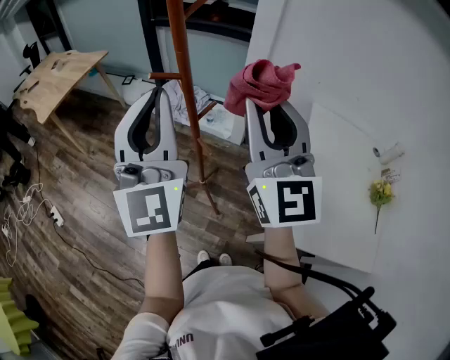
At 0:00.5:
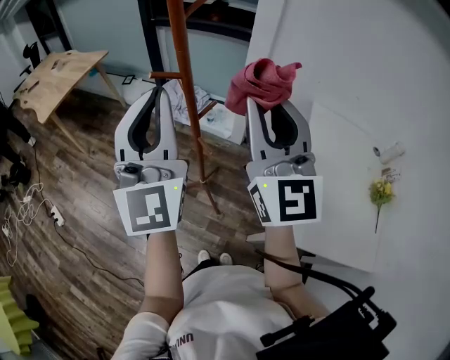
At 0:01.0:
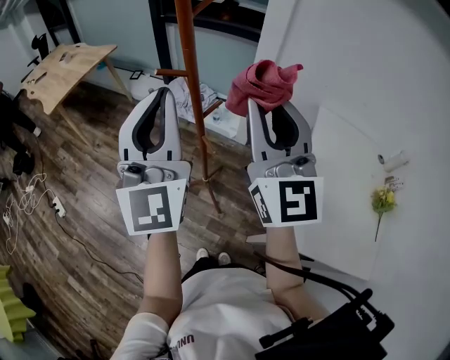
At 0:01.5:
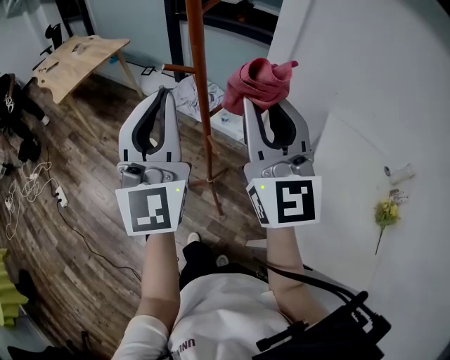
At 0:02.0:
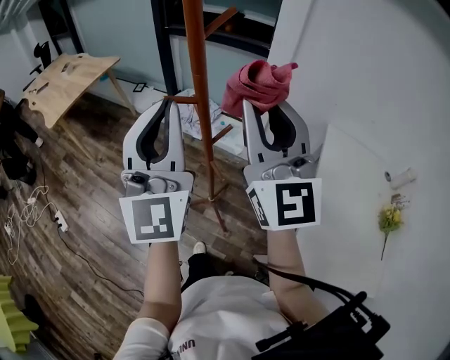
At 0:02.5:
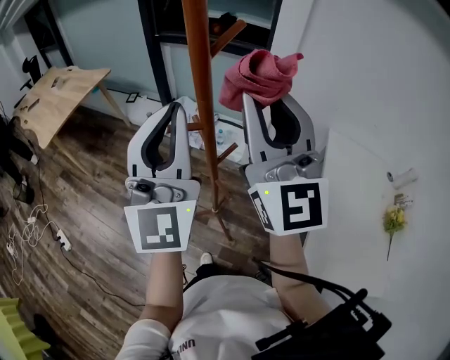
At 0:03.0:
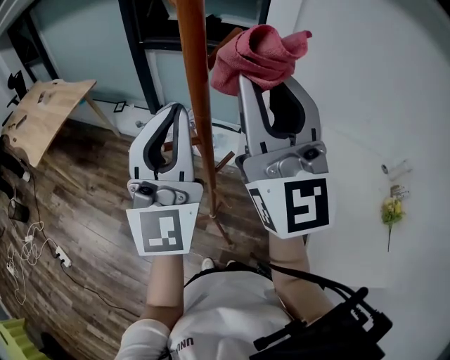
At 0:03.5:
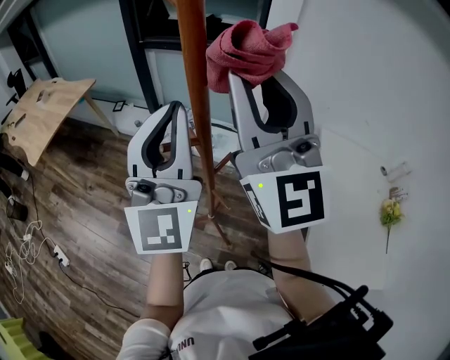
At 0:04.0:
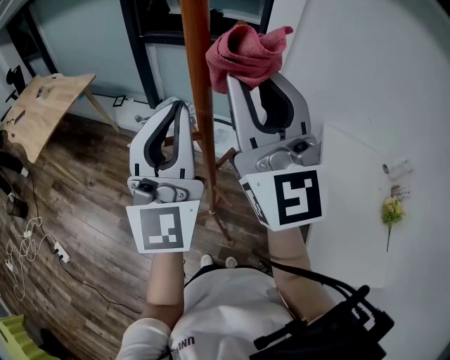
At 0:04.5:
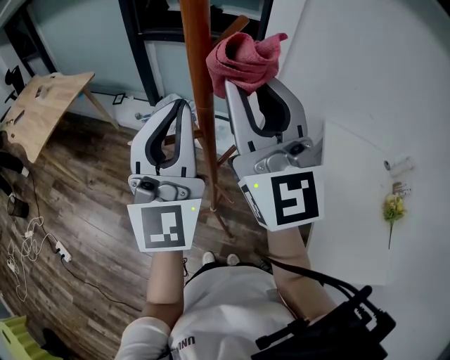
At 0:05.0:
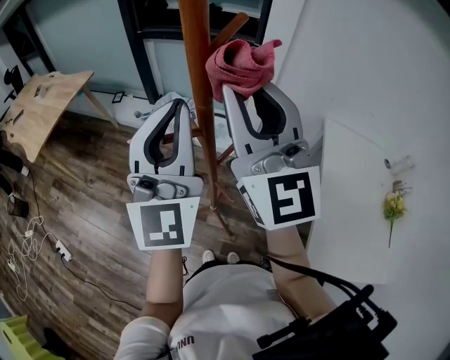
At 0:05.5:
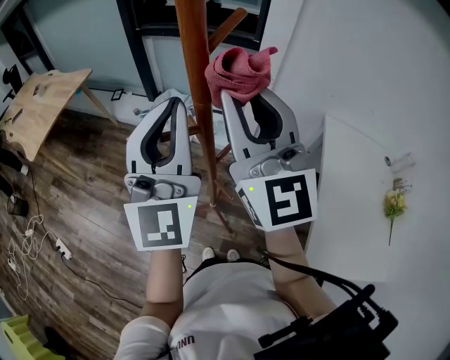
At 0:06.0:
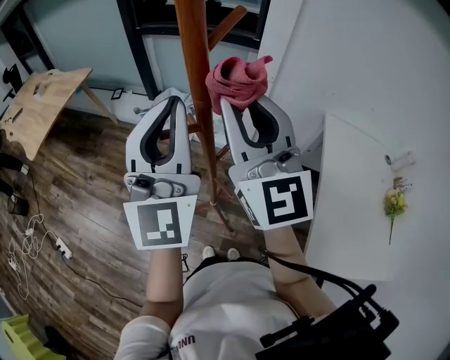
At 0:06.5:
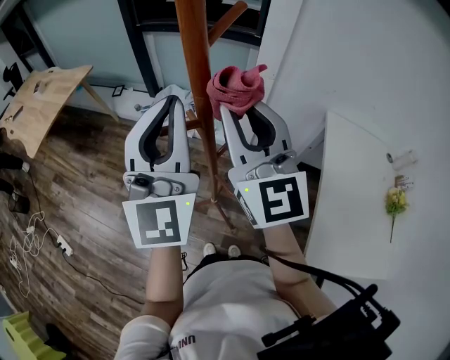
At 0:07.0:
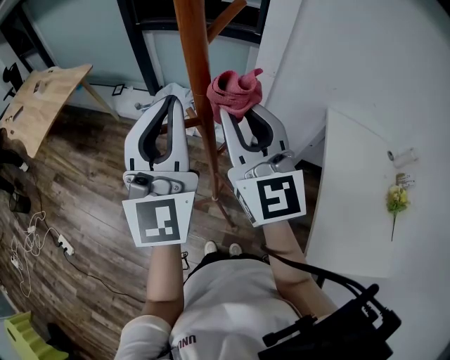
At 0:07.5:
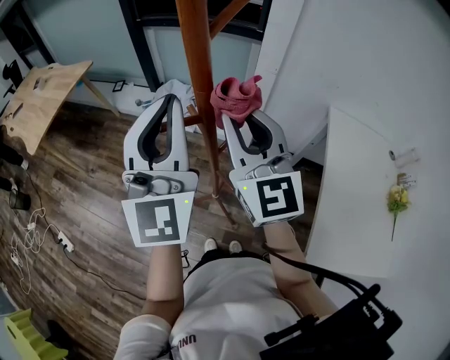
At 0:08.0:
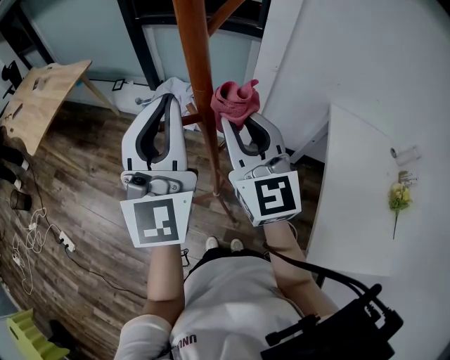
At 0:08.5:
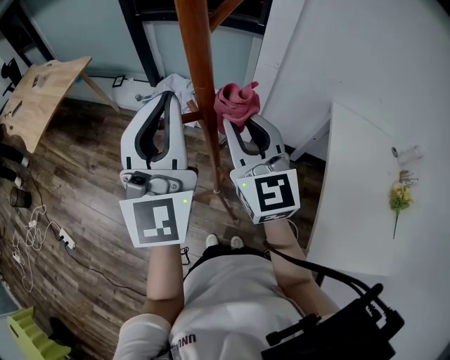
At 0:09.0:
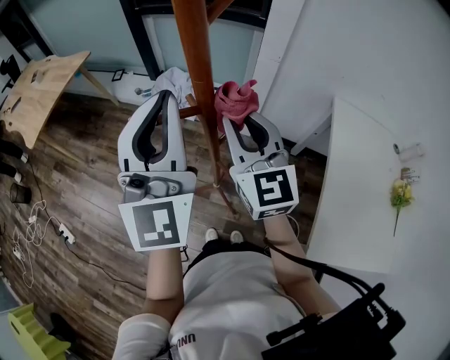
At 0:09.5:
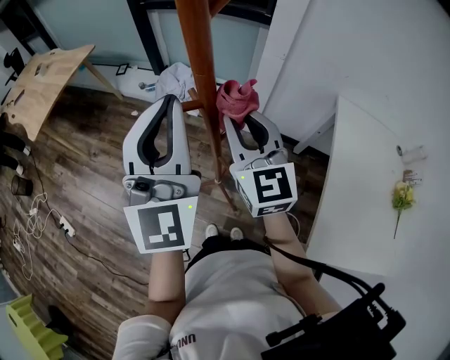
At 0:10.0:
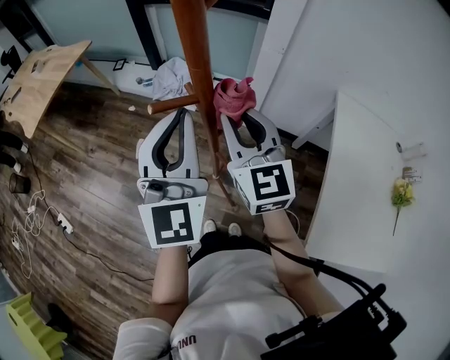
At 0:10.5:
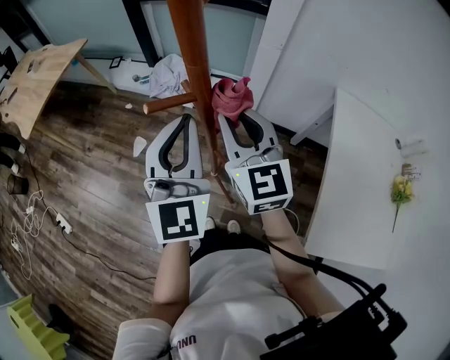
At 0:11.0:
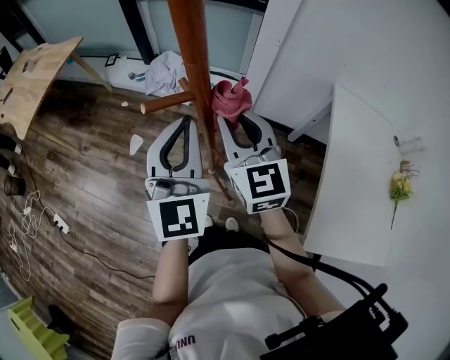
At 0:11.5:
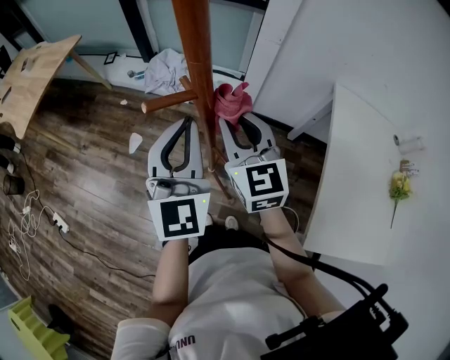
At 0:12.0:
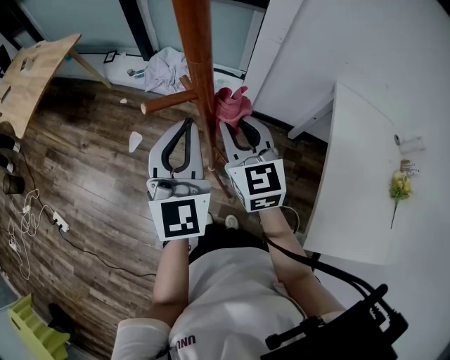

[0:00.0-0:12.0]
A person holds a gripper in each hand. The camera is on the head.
0:00.0 to 0:02.0: The two grippers go approximately 5 cm forward.
0:02.0 to 0:04.0: The left gripper moves forward, about 10 cm; the right gripper goes some 10 cm forward and upward.
0:04.0 to 0:06.0: The right gripper shifts some 5 cm downward.
0:06.0 to 0:08.0: The right gripper shifts roughly 10 cm downward.
0:08.0 to 0:10.0: Both grippers travel together downward, roughly 5 cm.
0:10.0 to 0:12.0: The grippers both shift downward by approximately 5 cm.

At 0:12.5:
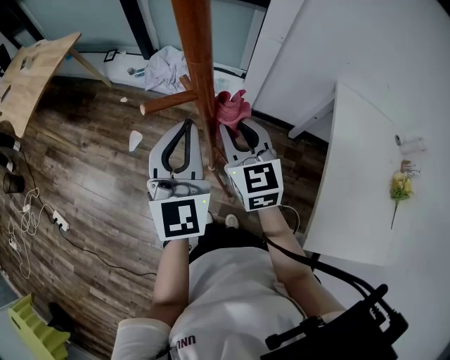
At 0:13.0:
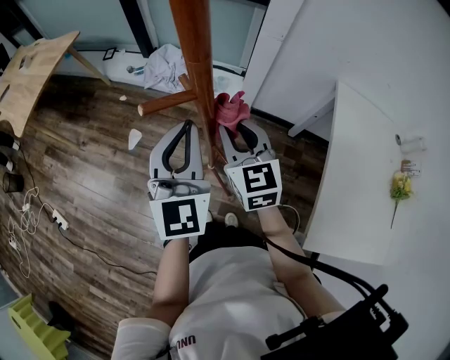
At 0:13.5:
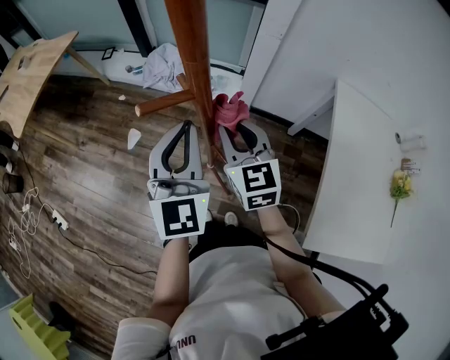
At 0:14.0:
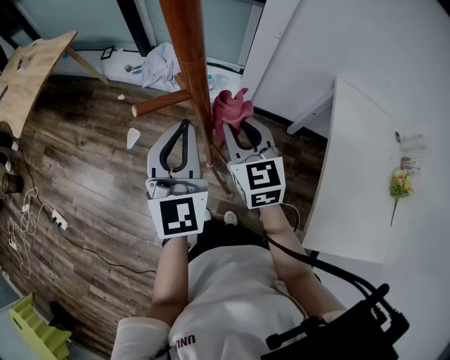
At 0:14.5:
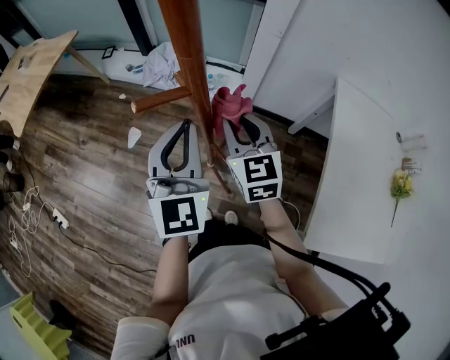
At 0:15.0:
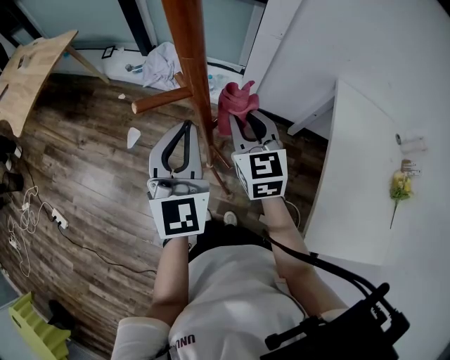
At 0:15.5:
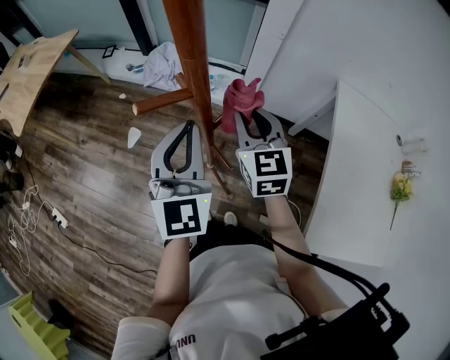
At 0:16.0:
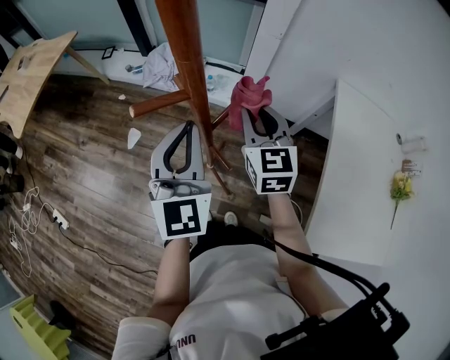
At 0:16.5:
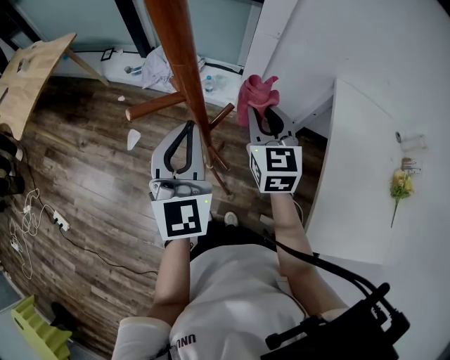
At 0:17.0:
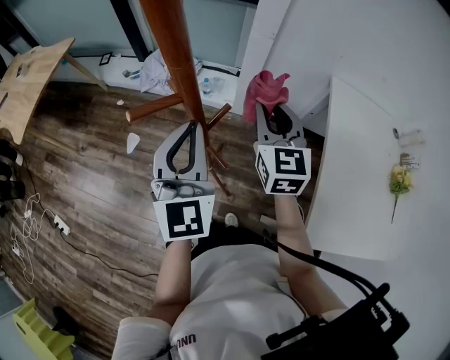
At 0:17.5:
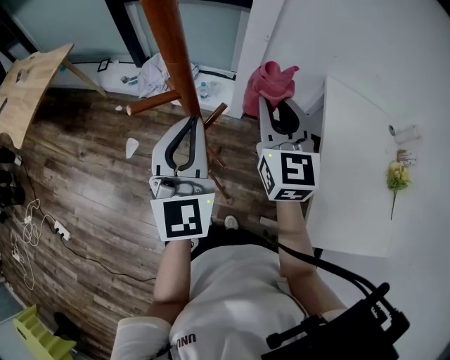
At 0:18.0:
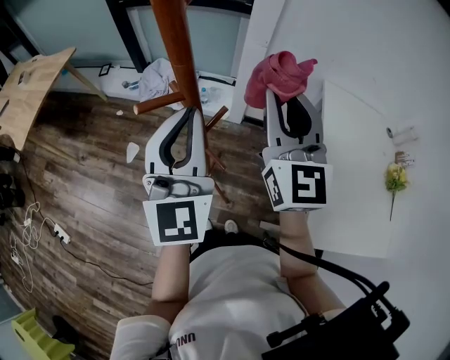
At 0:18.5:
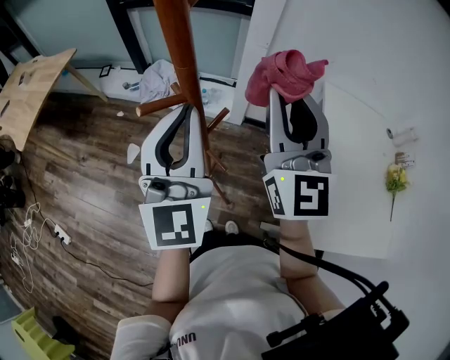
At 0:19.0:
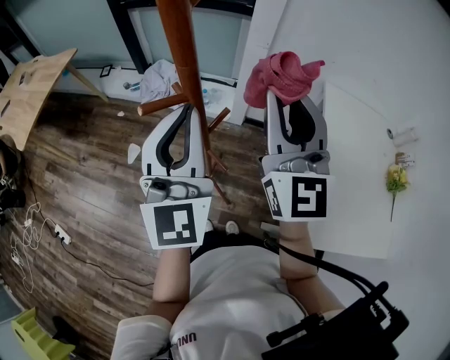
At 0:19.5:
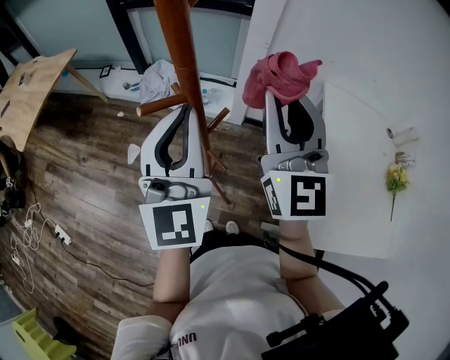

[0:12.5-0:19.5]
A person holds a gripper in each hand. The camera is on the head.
0:12.5 to 0:14.5: The grippers stay close to where they were, moving slightly.
0:14.5 to 0:16.0: The right gripper changes place by about 5 cm.
0:16.0 to 0:17.5: The right gripper shifts roughly 10 cm upward.
0:17.5 to 0:19.5: The left gripper shifts by approximately 5 cm, while the right gripper shifts about 10 cm upward.

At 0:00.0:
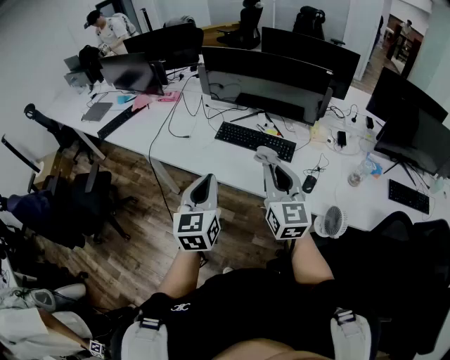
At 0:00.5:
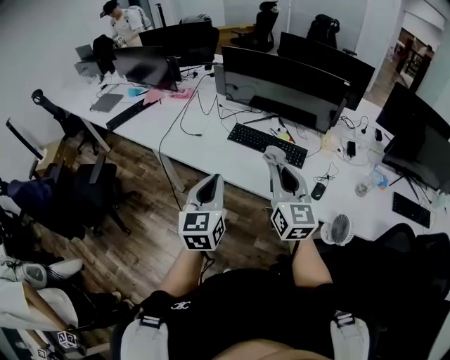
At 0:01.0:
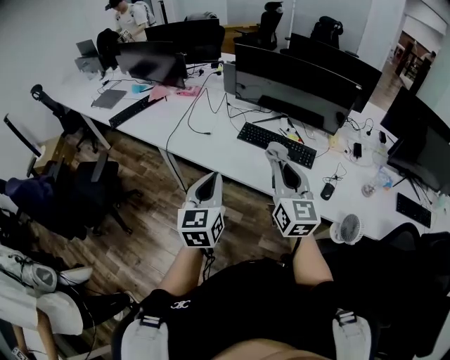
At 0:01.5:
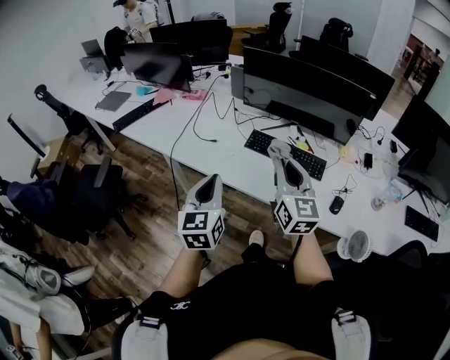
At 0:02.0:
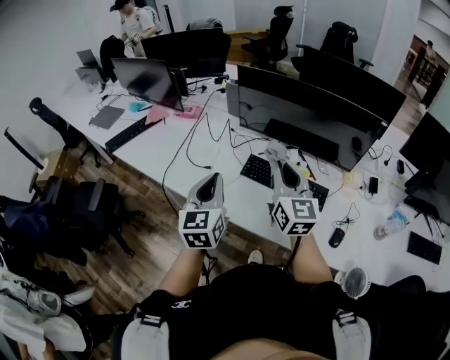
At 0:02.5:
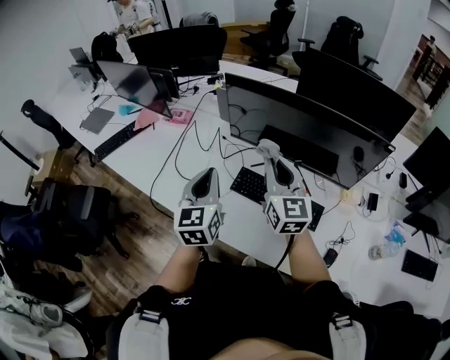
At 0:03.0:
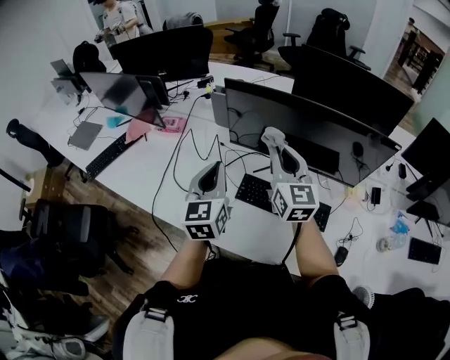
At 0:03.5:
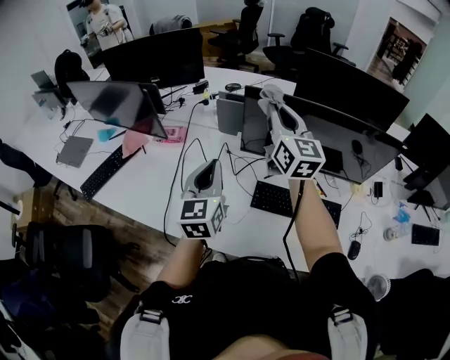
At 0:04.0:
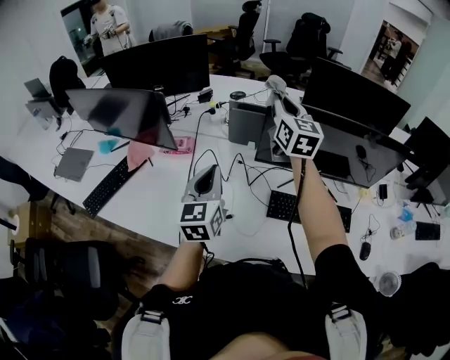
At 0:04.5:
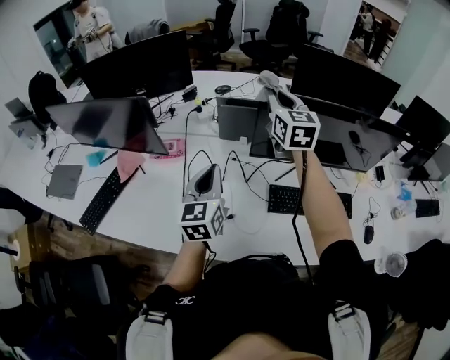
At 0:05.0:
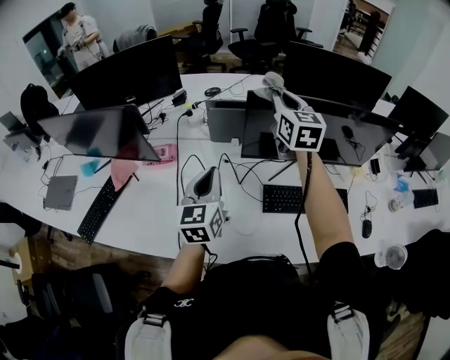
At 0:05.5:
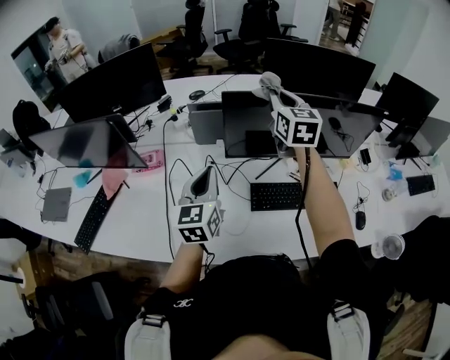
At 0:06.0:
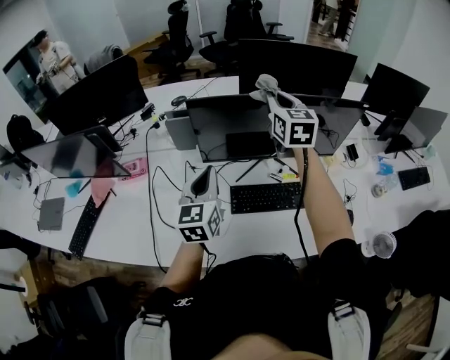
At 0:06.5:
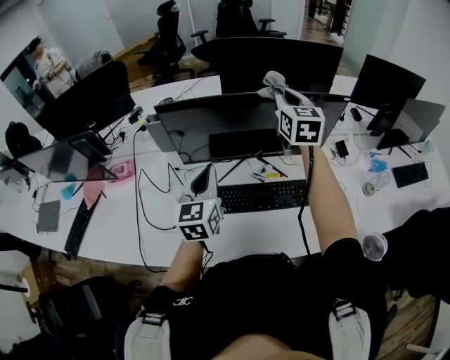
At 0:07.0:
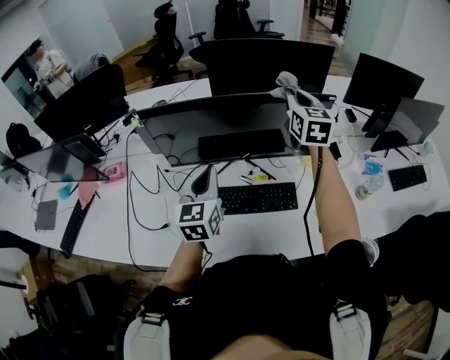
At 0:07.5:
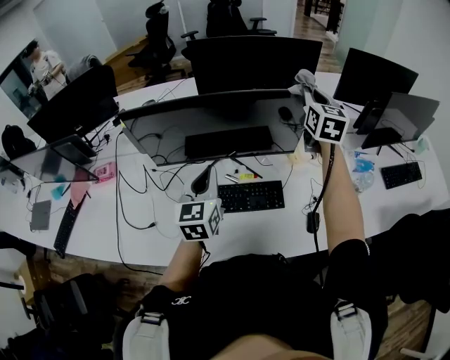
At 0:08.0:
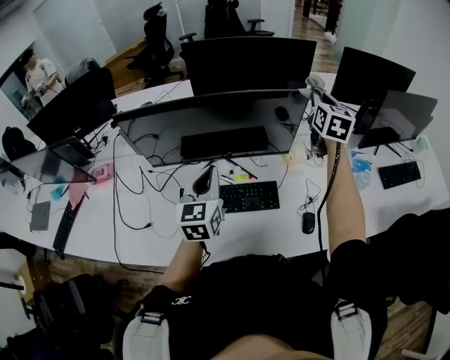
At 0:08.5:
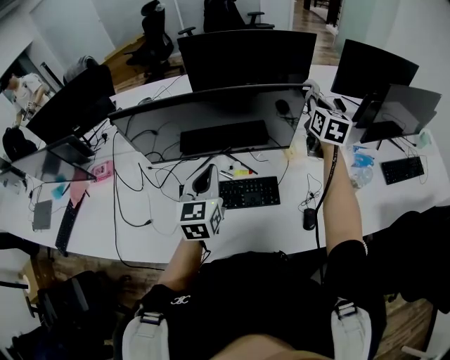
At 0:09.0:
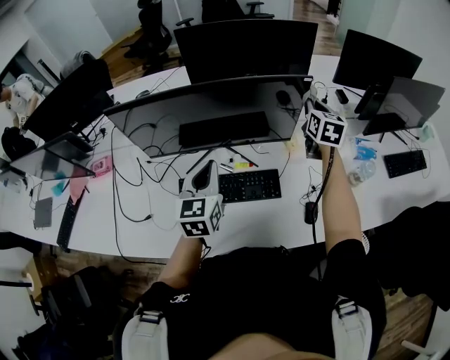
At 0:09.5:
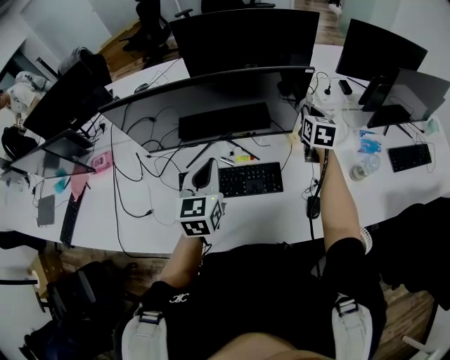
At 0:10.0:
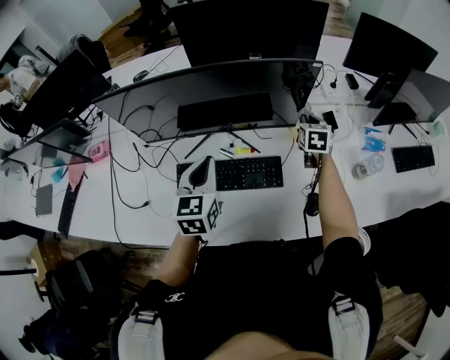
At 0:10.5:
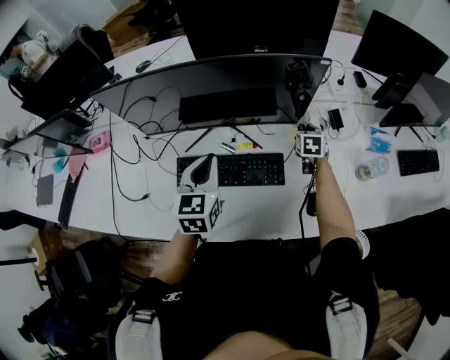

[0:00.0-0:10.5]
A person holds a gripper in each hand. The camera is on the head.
0:00.0 to 0:02.0: The left gripper shifts about 25 cm forward and to the left. The right gripper shifts approximately 25 cm forward.
0:02.0 to 0:04.0: The right gripper is displaced forward by approximately 40 cm; the left gripper goes about 35 cm forward and to the left.
0:04.0 to 0:06.5: Both grippers travel together to the right, some 30 cm.
0:06.5 to 0:08.5: The right gripper is displaced to the right by about 30 cm. Meanwhile the left gripper moves to the right, some 15 cm.
0:08.5 to 0:10.5: The right gripper travels downward by about 30 cm, and swivels approximately 30 degrees, while the left gripper heads downward, covering roughly 5 cm.
